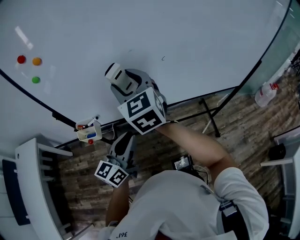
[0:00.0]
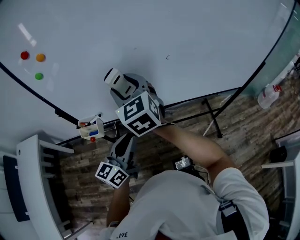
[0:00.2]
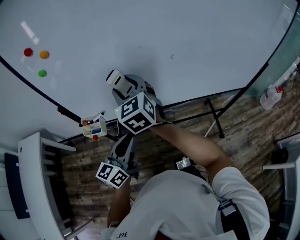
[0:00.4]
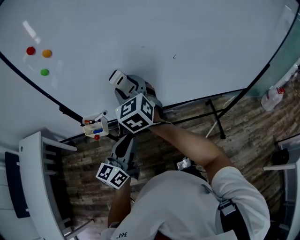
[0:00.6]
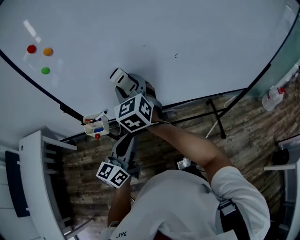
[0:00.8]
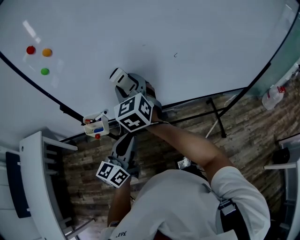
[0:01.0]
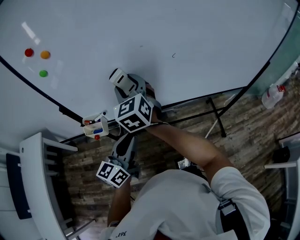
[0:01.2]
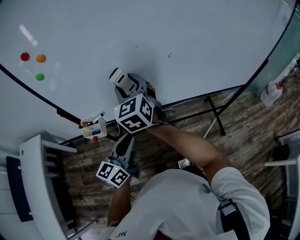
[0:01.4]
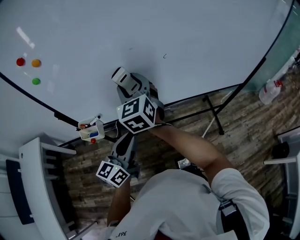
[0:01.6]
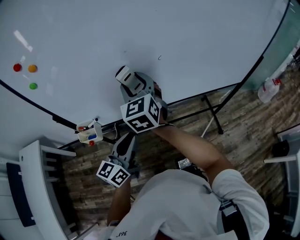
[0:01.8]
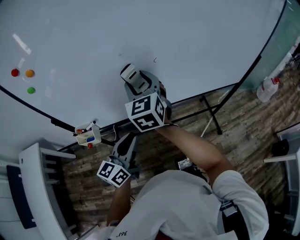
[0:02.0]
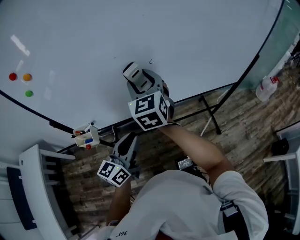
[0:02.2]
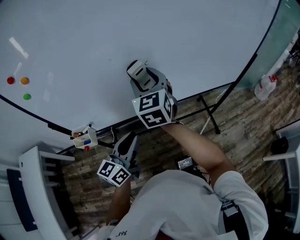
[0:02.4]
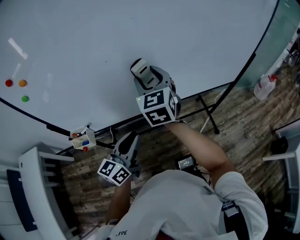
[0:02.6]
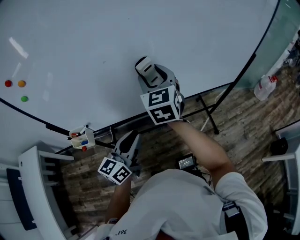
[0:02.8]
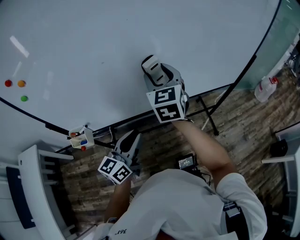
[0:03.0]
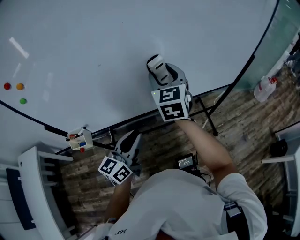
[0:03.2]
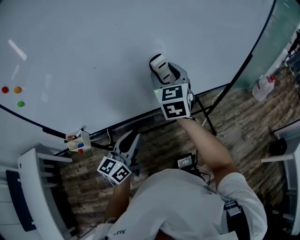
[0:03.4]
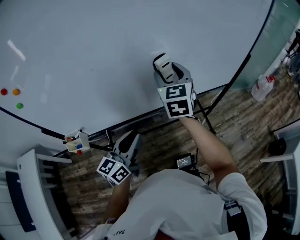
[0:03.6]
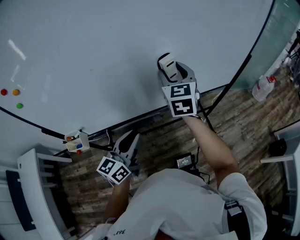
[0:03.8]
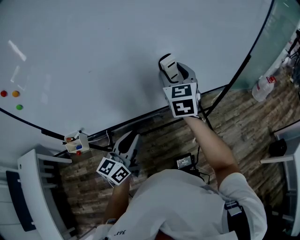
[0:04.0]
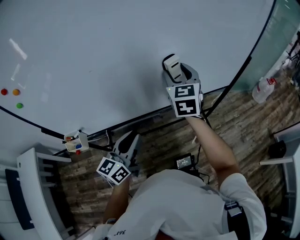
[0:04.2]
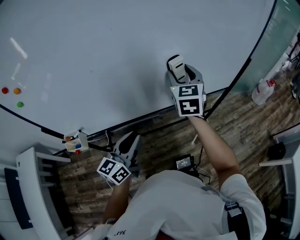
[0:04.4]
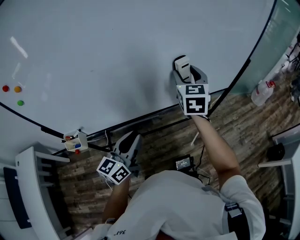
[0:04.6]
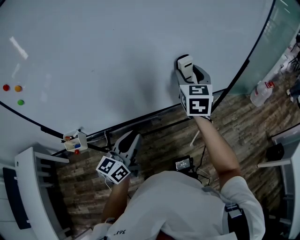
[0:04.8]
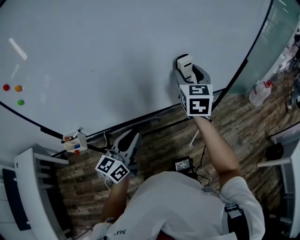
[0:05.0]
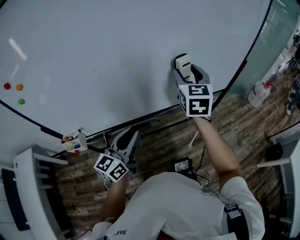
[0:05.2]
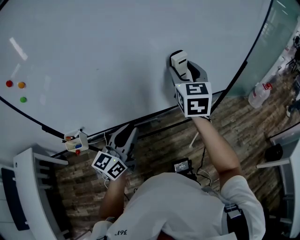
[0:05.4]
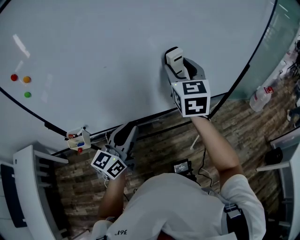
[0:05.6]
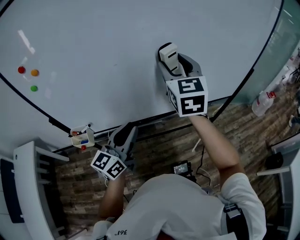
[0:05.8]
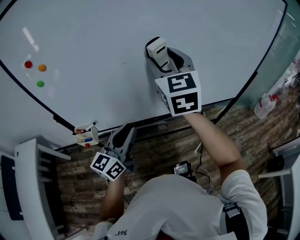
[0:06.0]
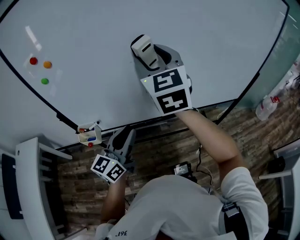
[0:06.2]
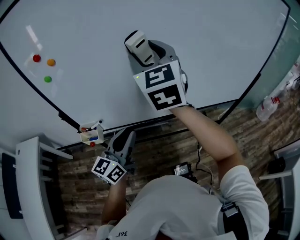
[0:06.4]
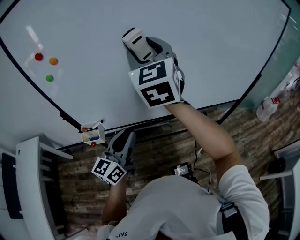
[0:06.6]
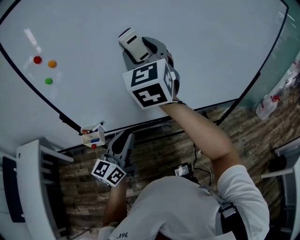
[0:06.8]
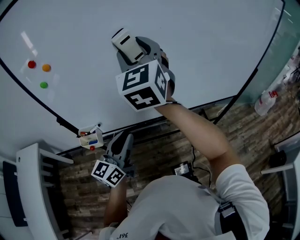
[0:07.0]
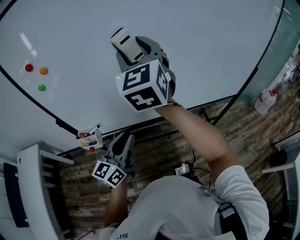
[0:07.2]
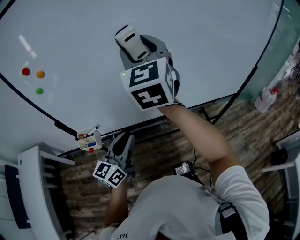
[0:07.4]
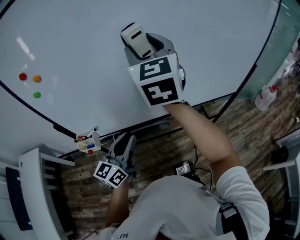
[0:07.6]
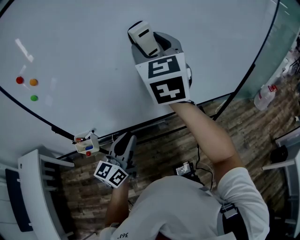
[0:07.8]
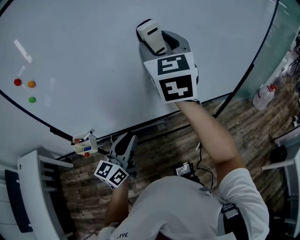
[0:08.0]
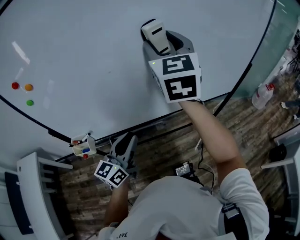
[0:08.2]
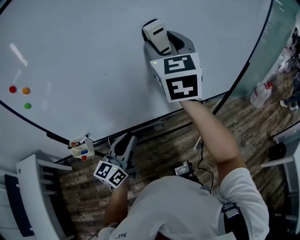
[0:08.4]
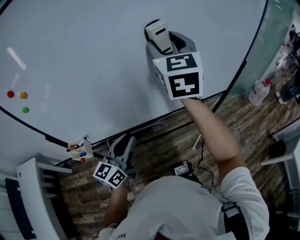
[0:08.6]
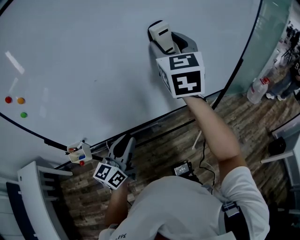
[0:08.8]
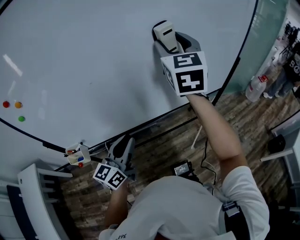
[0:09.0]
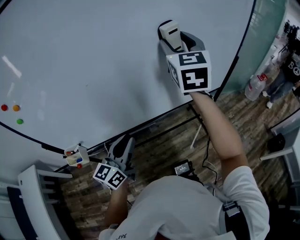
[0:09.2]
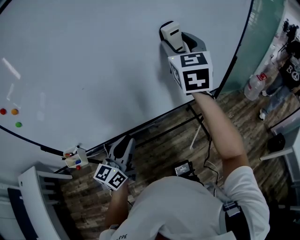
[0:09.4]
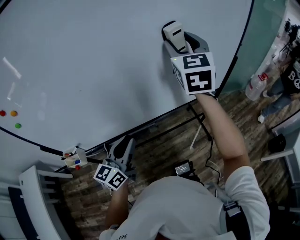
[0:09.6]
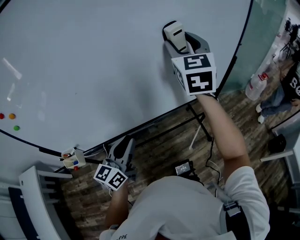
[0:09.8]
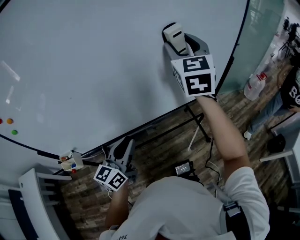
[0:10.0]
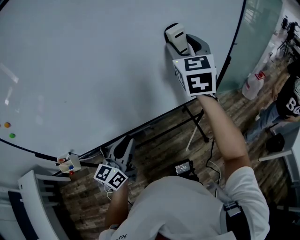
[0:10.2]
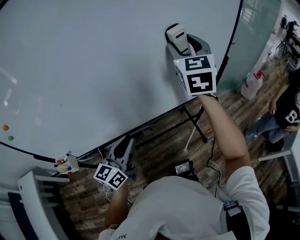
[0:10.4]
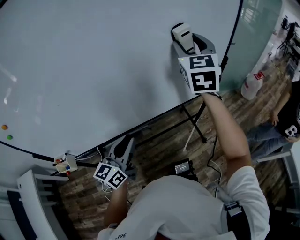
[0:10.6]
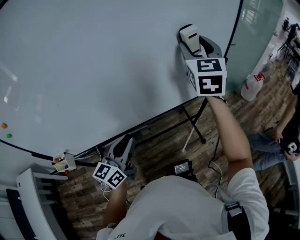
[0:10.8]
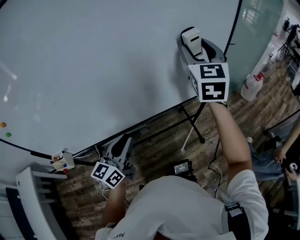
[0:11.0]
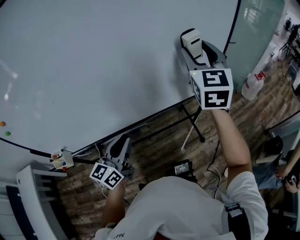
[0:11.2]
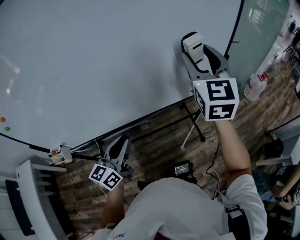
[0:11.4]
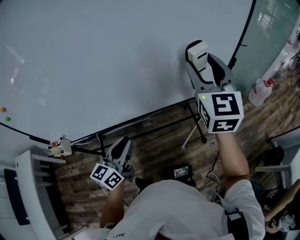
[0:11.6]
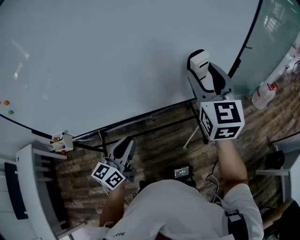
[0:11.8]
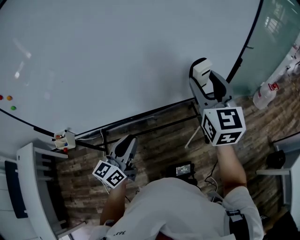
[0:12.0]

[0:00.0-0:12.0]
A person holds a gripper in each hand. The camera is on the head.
0:00.0 to 0:01.6: The right gripper moves downward, roughly 5 cm.
0:01.6 to 0:03.0: The right gripper heads to the right, covering approximately 20 cm. Meanwhile the left gripper is displaced to the right by roughly 10 cm.
0:03.0 to 0:04.4: The right gripper moves to the right and forward, roughly 15 cm.
0:04.4 to 0:06.0: The left gripper heads to the left and upward, covering approximately 10 cm. The right gripper heads to the left, upward and backward, covering approximately 25 cm.
0:06.0 to 0:07.6: The right gripper is displaced upward by approximately 5 cm.
0:07.6 to 0:09.0: The left gripper moves to the right, approximately 10 cm; the right gripper travels to the right by roughly 20 cm.
0:09.0 to 0:10.4: Both grippers travel together to the right and forward, about 15 cm.
0:10.4 to 0:12.0: The right gripper is displaced backward, downward and to the right by about 15 cm; the left gripper shifts by roughly 5 cm.

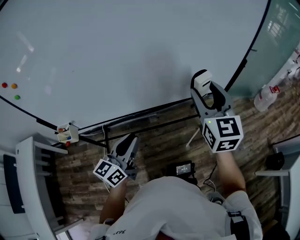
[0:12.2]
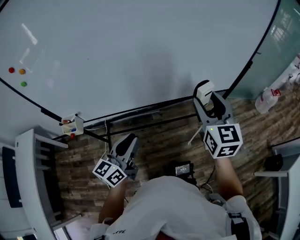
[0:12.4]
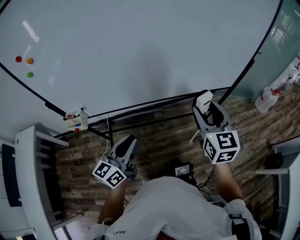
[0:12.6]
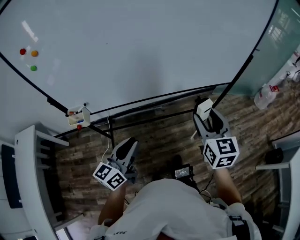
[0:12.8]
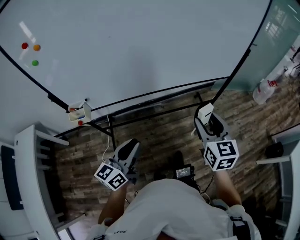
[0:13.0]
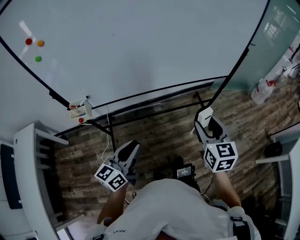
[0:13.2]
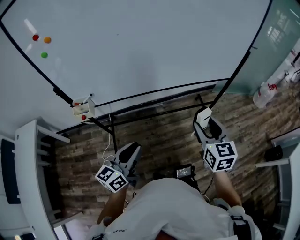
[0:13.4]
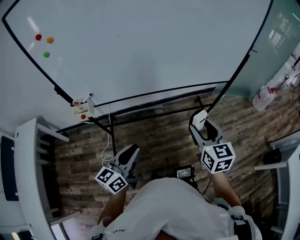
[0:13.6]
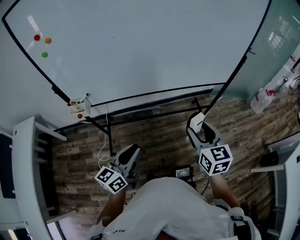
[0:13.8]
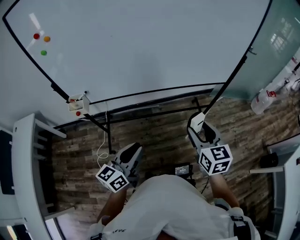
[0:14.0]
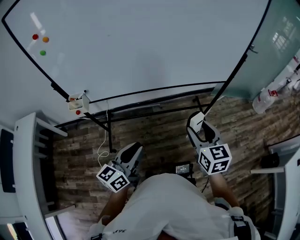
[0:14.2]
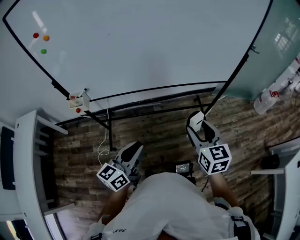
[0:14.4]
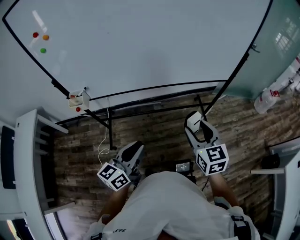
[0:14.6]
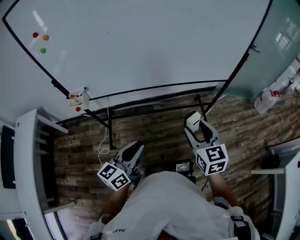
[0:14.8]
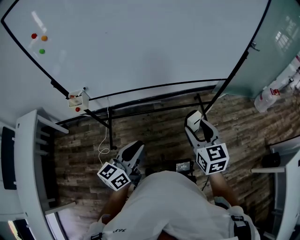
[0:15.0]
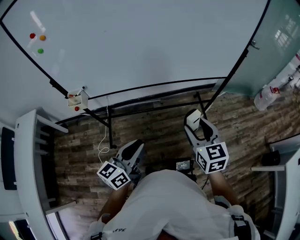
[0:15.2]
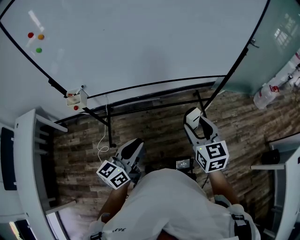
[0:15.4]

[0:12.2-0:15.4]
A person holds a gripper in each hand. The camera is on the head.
0:12.2 to 0:13.8: The left gripper is displaced backward by about 20 cm. The right gripper shifts approximately 25 cm backward and downward.
0:13.8 to 0:15.4: The left gripper travels to the right by roughly 5 cm.

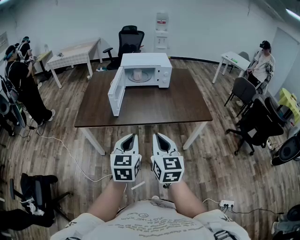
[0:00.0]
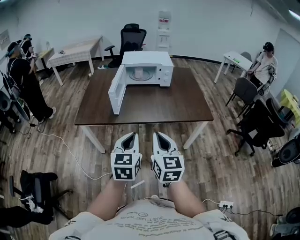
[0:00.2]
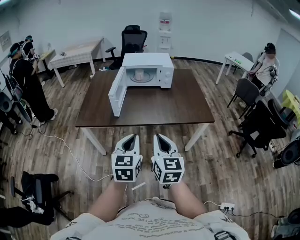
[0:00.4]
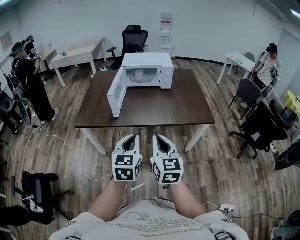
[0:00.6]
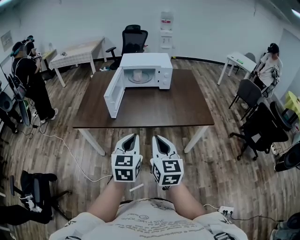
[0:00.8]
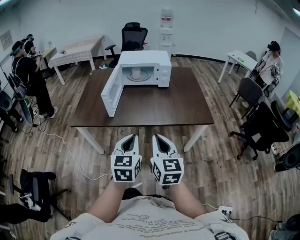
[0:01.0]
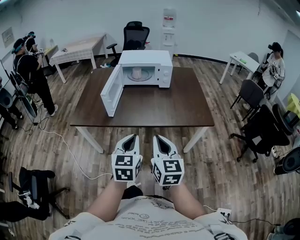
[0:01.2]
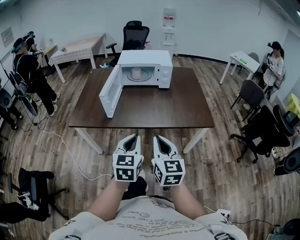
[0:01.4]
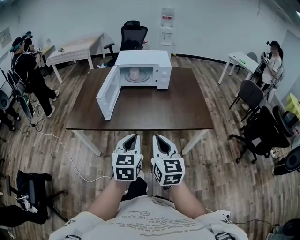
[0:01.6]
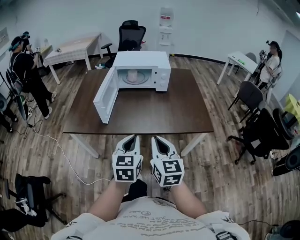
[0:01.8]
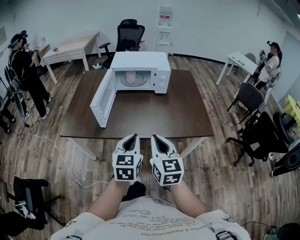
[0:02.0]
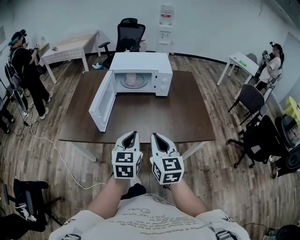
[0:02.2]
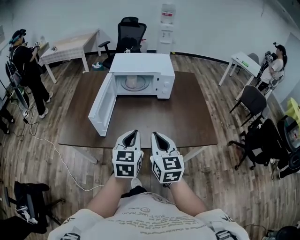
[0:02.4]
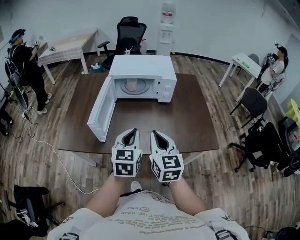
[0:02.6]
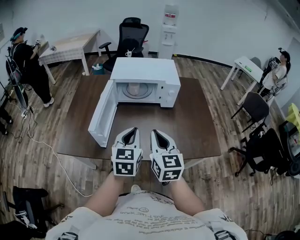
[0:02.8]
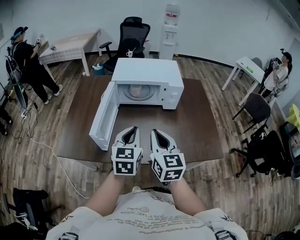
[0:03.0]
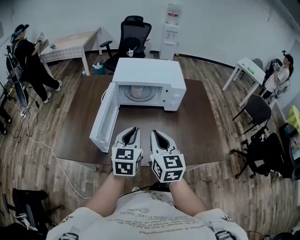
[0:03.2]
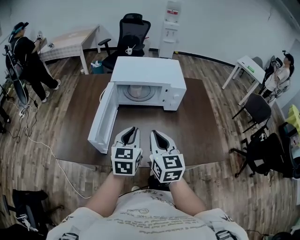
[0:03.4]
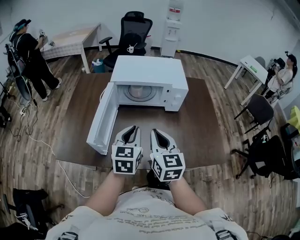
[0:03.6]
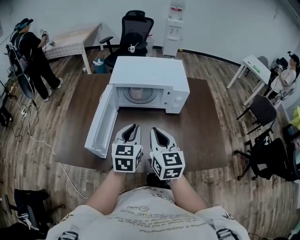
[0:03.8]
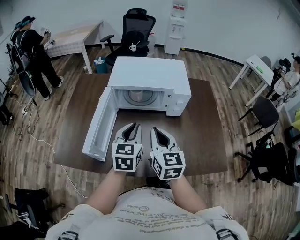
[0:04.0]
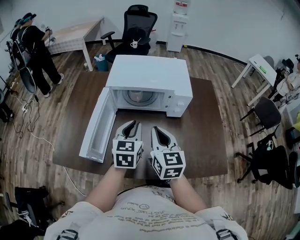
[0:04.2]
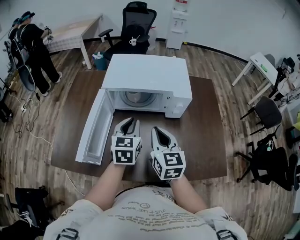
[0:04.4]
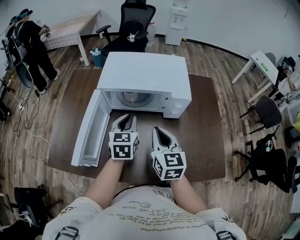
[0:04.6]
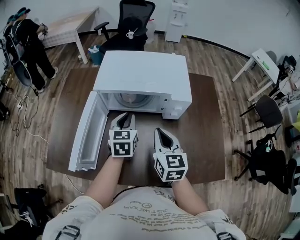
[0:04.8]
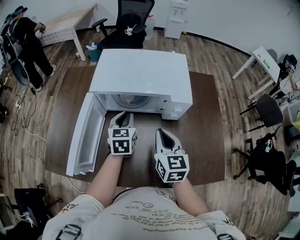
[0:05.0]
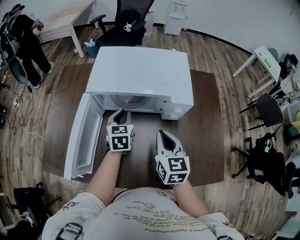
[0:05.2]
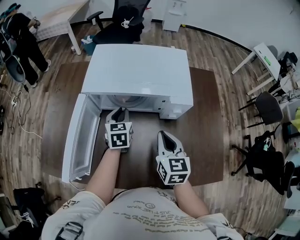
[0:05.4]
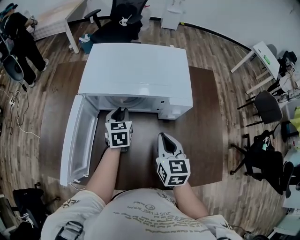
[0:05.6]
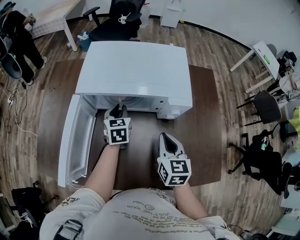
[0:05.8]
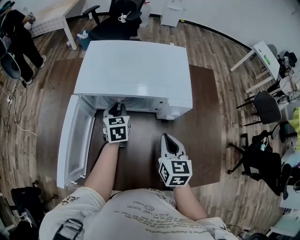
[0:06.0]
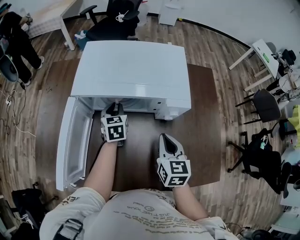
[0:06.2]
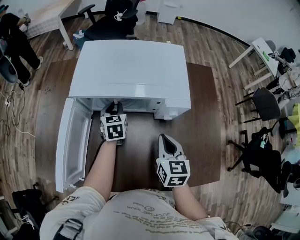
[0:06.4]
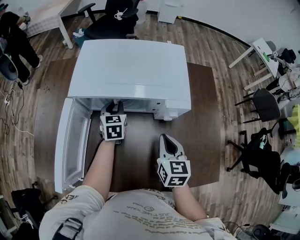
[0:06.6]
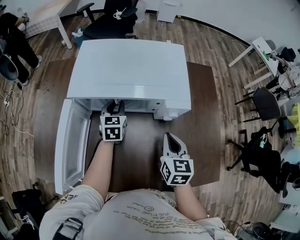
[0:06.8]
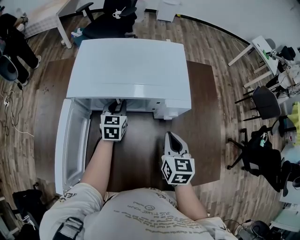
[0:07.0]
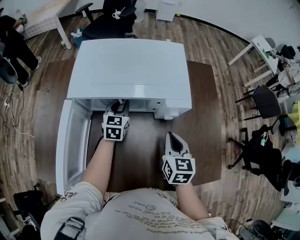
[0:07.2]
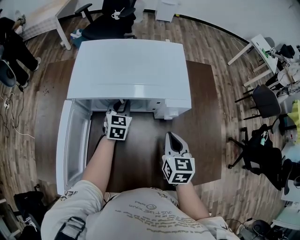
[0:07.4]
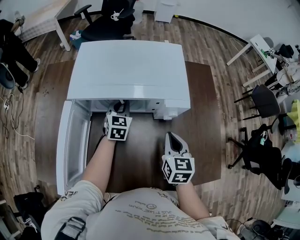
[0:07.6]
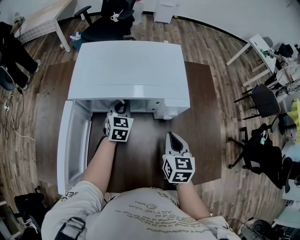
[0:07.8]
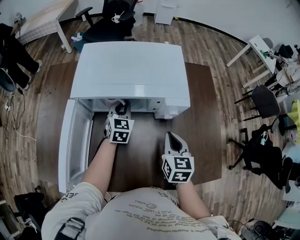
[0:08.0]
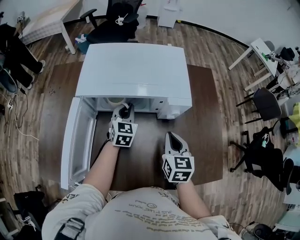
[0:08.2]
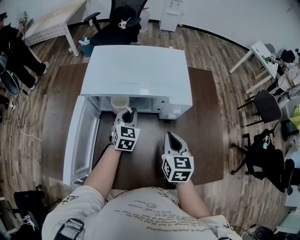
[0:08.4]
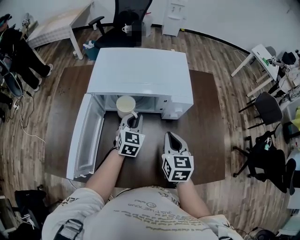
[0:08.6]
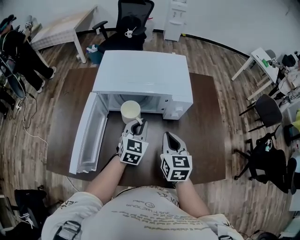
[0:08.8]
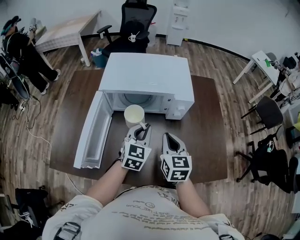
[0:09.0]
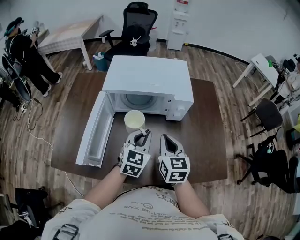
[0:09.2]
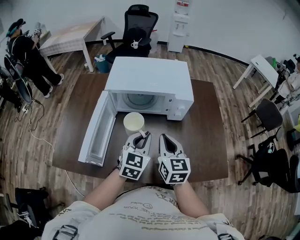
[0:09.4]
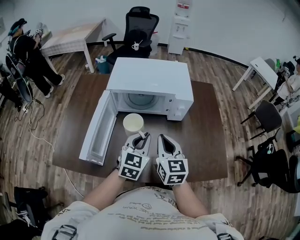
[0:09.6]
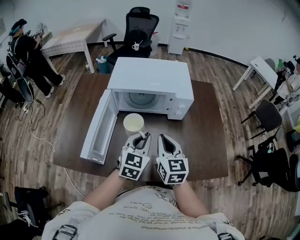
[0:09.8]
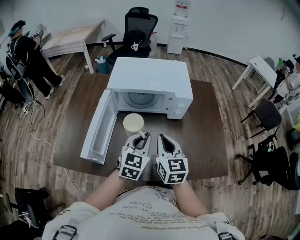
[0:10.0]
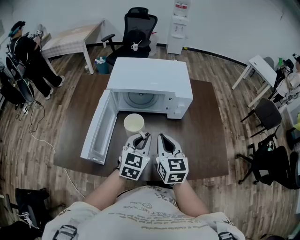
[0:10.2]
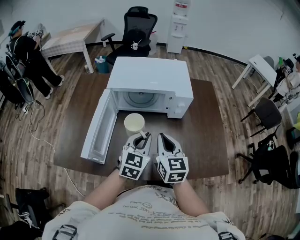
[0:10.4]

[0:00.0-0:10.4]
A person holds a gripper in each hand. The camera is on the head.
0:00.0 to 0:01.4: The two grippers go about 10 cm to the right and forward.
0:01.4 to 0:03.0: Both grippers move forward, approximately 30 cm.
0:03.0 to 0:04.4: Both grippers travel together forward, roughly 20 cm.
0:04.4 to 0:06.0: The left gripper moves forward and downward, about 20 cm; the right gripper goes roughly 15 cm to the right, downward and forward.
0:06.0 to 0:07.4: The left gripper ends up about 5 cm from where it was.
0:07.4 to 0:09.0: The right gripper shifts roughly 10 cm backward, to the left and upward. The left gripper heads backward and upward, covering roughly 20 cm.
0:09.0 to 0:10.4: Both grippers travel together backward, roughly 5 cm.
